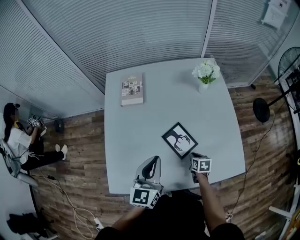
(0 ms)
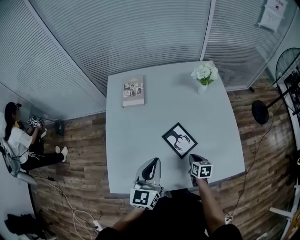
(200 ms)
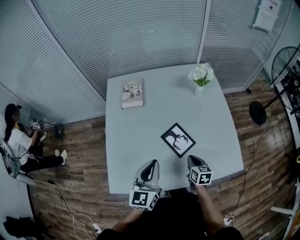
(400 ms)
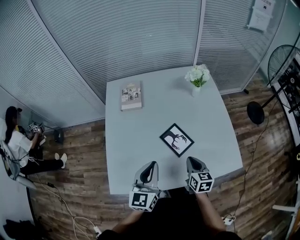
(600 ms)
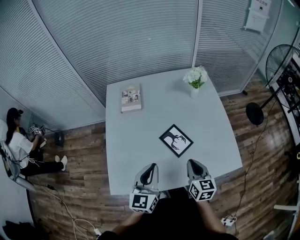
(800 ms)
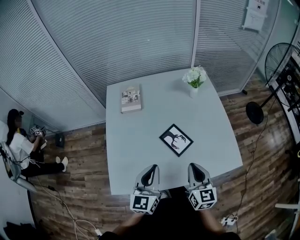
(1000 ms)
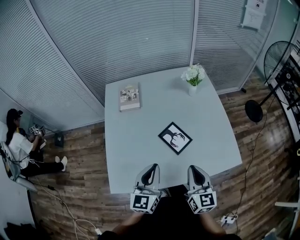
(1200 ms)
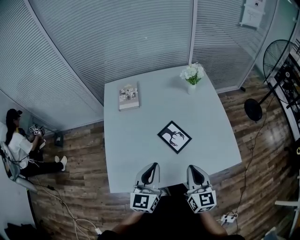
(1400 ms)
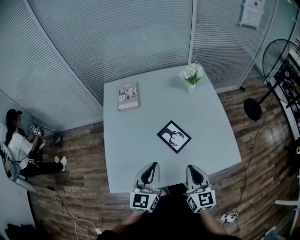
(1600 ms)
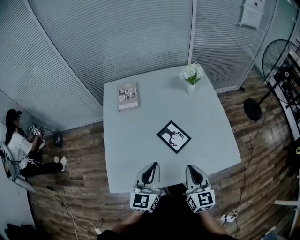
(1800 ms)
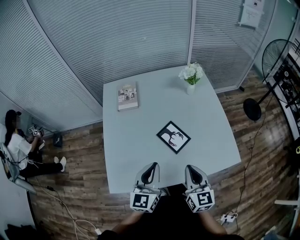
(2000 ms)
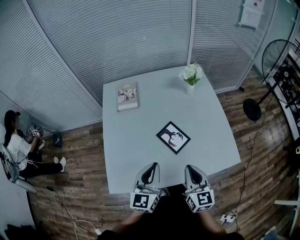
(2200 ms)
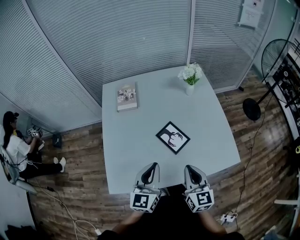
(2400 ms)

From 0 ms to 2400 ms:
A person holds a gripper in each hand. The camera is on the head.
From 0 ms to 1200 ms: The right gripper heads upward and backward, covering roughly 30 cm, and tilts its fingers some 40 degrees upward. The left gripper is displaced backward by roughly 10 cm.
From 1200 ms to 2400 ms: Both grippers stay about where they are.

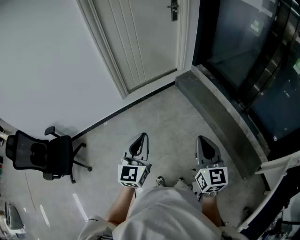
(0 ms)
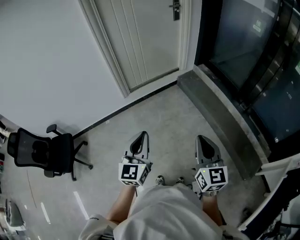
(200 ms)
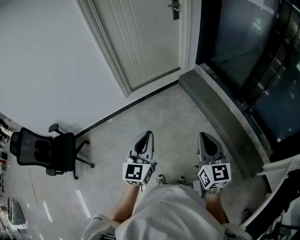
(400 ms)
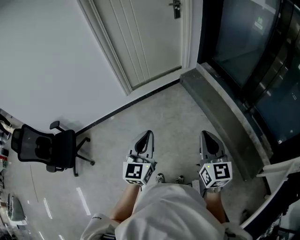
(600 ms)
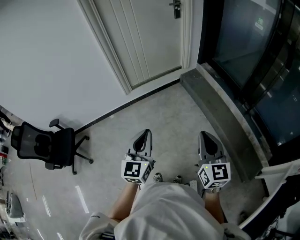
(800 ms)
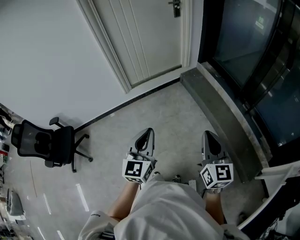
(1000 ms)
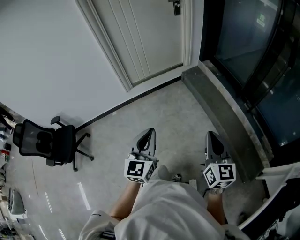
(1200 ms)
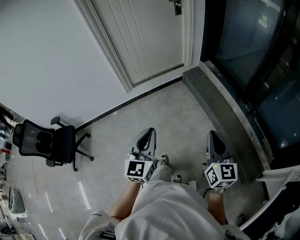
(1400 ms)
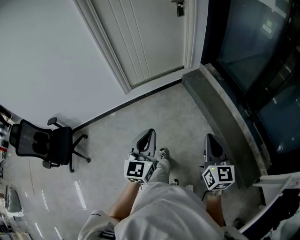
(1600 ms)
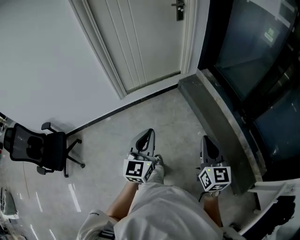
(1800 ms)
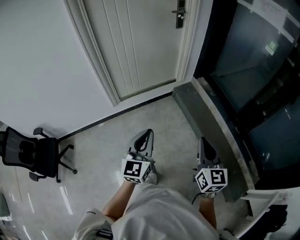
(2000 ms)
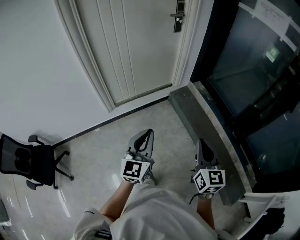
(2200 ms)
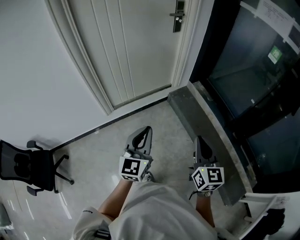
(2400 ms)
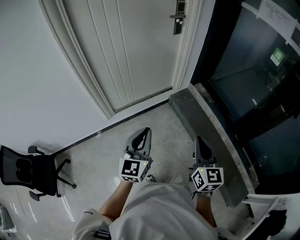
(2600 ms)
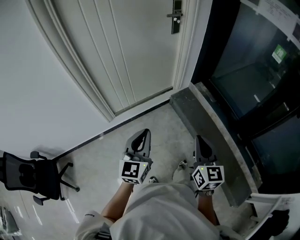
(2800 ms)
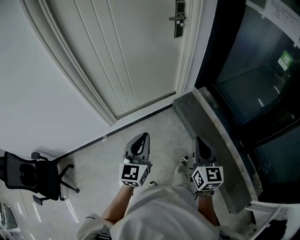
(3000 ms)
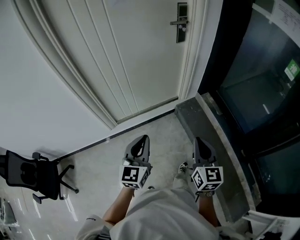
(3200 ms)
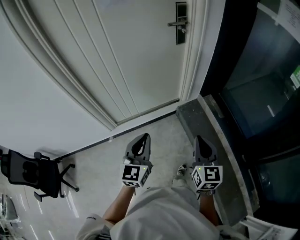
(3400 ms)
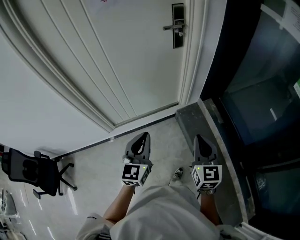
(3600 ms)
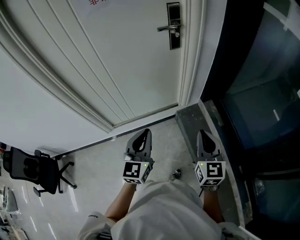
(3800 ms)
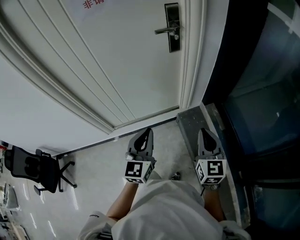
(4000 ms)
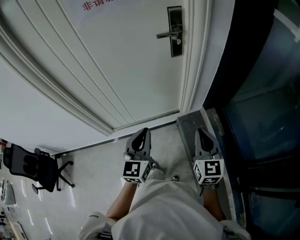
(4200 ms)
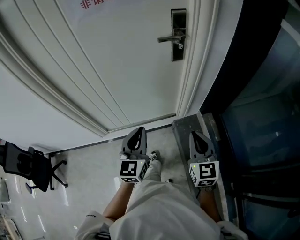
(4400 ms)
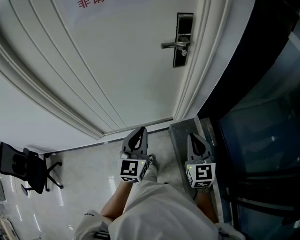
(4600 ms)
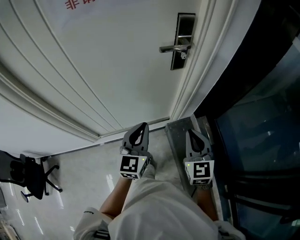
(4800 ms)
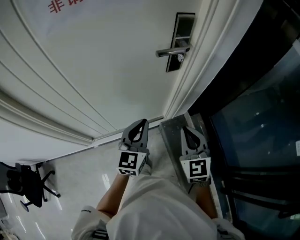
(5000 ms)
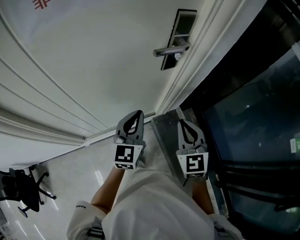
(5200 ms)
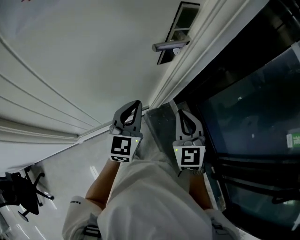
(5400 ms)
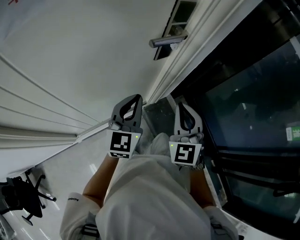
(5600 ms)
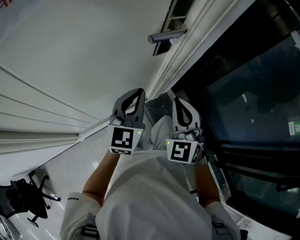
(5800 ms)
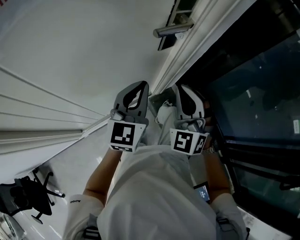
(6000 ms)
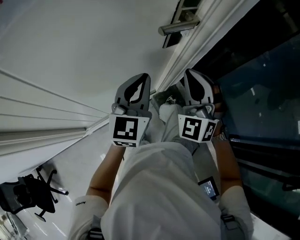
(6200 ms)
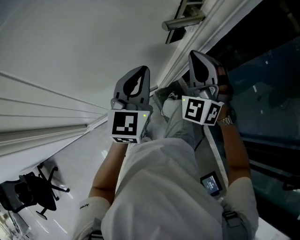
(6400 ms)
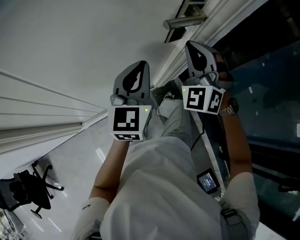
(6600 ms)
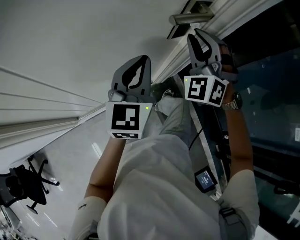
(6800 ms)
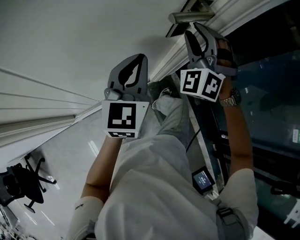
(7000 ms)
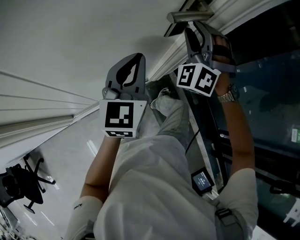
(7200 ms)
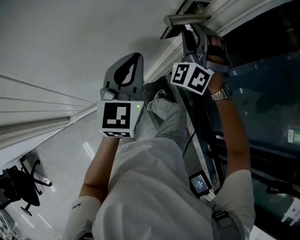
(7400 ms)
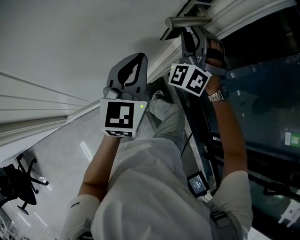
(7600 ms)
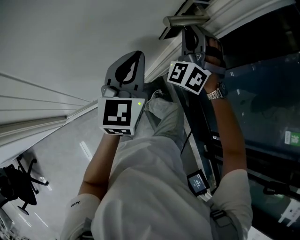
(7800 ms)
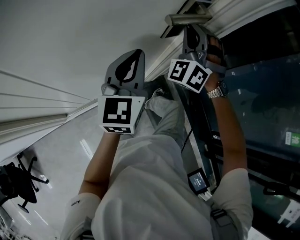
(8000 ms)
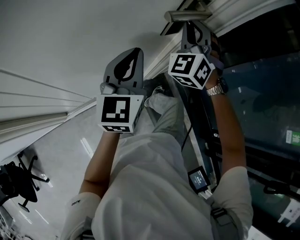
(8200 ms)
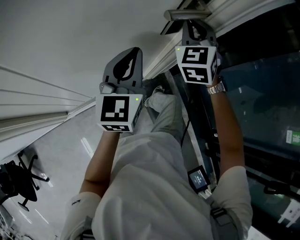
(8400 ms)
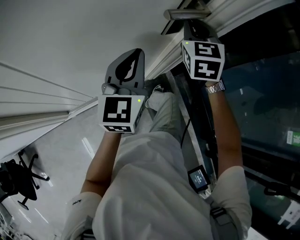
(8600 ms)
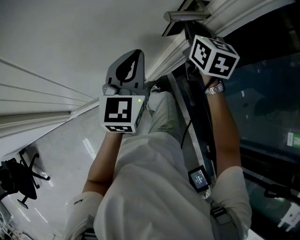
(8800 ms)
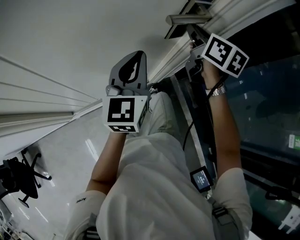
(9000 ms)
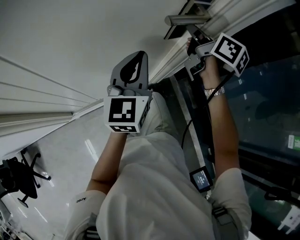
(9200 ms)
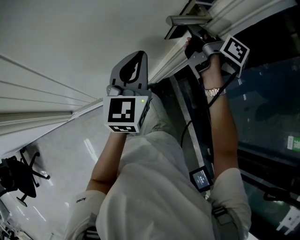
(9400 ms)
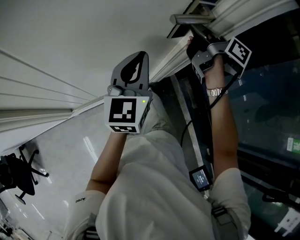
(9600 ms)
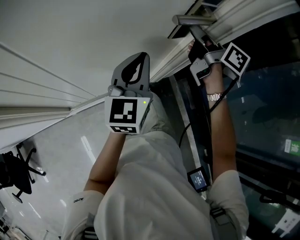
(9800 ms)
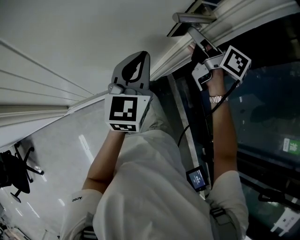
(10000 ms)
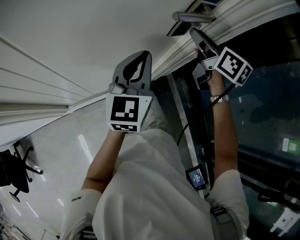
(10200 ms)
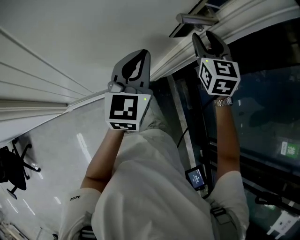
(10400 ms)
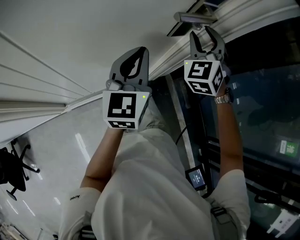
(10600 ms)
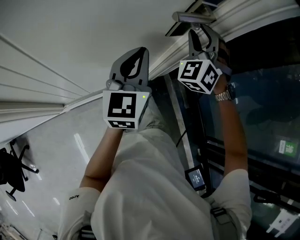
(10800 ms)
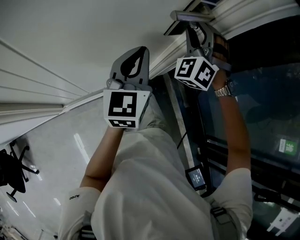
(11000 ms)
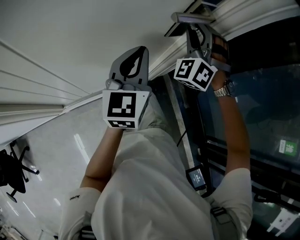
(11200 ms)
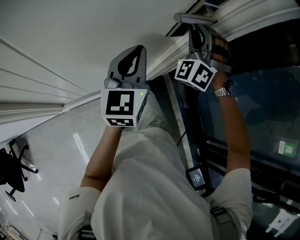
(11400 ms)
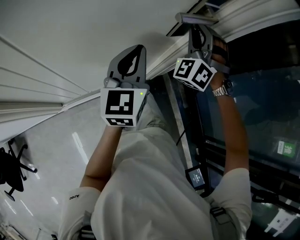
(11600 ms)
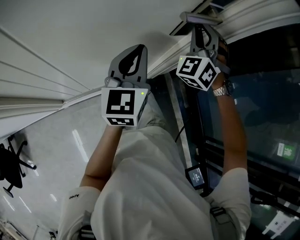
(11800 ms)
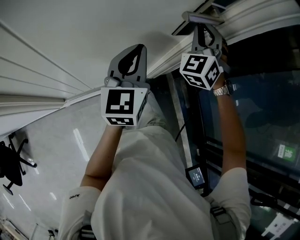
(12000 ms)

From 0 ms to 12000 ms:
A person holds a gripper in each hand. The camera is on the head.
From 0 ms to 1600 ms: The grippers both shift to the right and forward by approximately 15 cm.
From 1600 ms to 3000 ms: Both grippers move forward, about 40 cm.
From 3000 ms to 4400 ms: The two grippers go roughly 35 cm forward and to the right. The right gripper rotates some 20 degrees.
From 4400 ms to 6000 ms: The left gripper travels forward by some 25 cm, and turns by about 20 degrees. The right gripper goes approximately 25 cm forward and to the left, and rolls counterclockwise, seen from behind, by about 50 degrees.
From 6000 ms to 7600 ms: The right gripper is displaced forward by roughly 20 cm, changes its angle by approximately 30 degrees, and opens, while the left gripper is displaced forward by some 5 cm.
From 7600 ms to 9000 ms: The right gripper twists about 100 degrees clockwise, seen from behind, and closes up.
From 9000 ms to 10400 ms: The right gripper twists roughly 40 degrees counterclockwise, seen from behind, and opens its fingers.
From 10400 ms to 12000 ms: The right gripper rotates about 40 degrees, and closes its fingers.

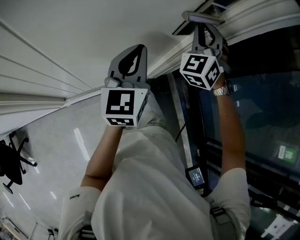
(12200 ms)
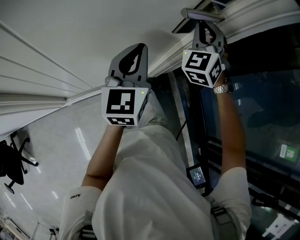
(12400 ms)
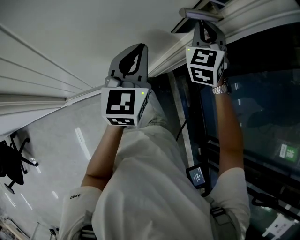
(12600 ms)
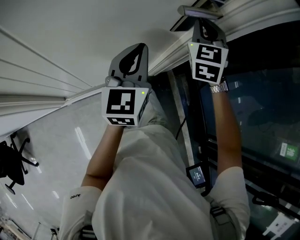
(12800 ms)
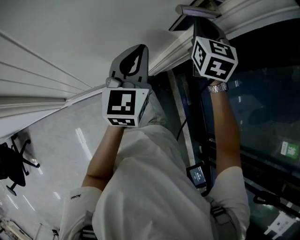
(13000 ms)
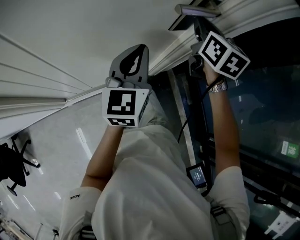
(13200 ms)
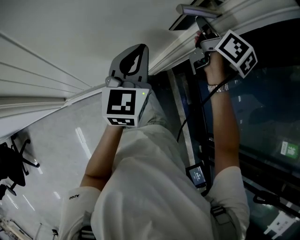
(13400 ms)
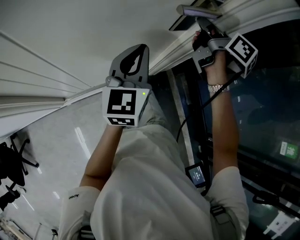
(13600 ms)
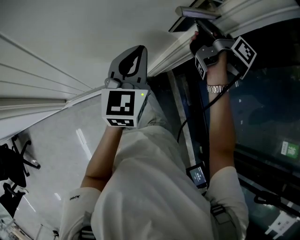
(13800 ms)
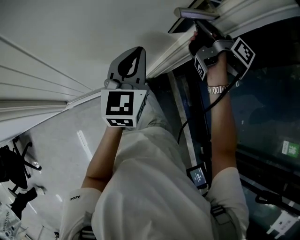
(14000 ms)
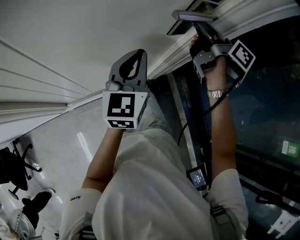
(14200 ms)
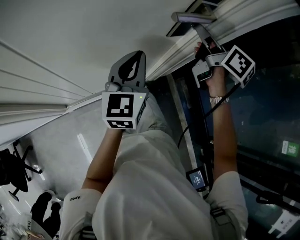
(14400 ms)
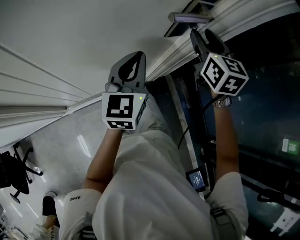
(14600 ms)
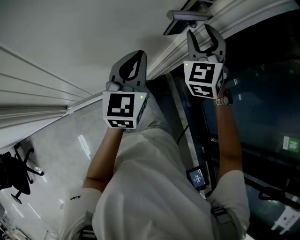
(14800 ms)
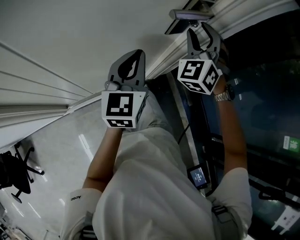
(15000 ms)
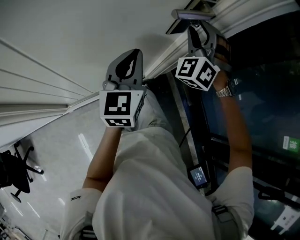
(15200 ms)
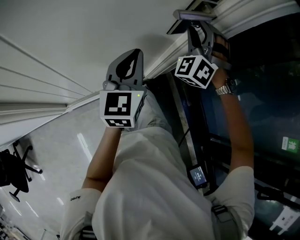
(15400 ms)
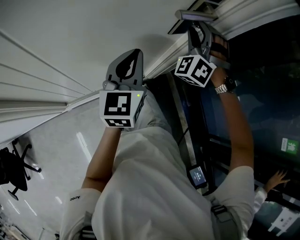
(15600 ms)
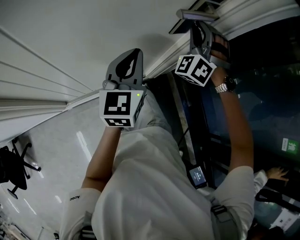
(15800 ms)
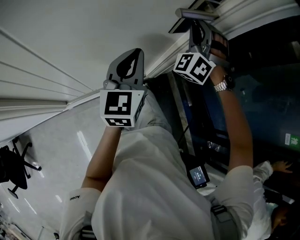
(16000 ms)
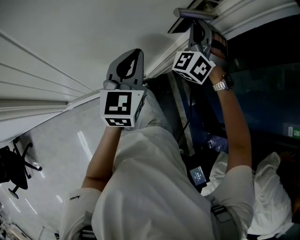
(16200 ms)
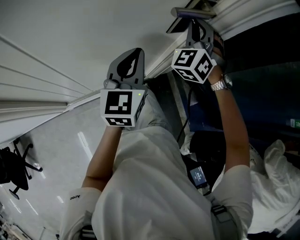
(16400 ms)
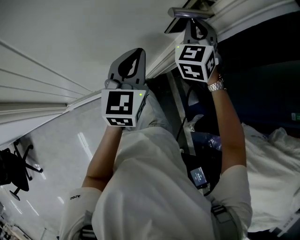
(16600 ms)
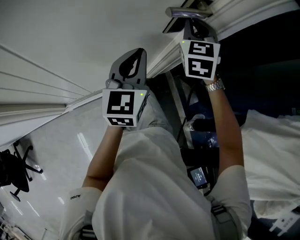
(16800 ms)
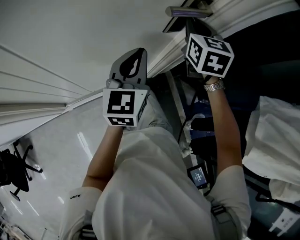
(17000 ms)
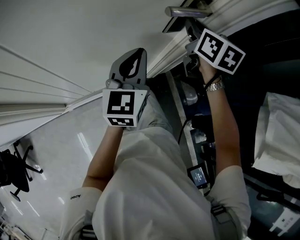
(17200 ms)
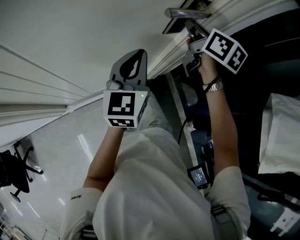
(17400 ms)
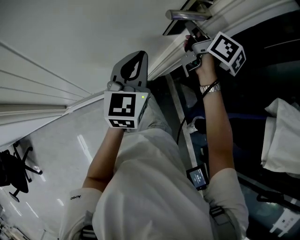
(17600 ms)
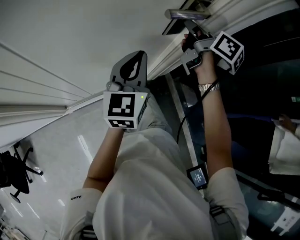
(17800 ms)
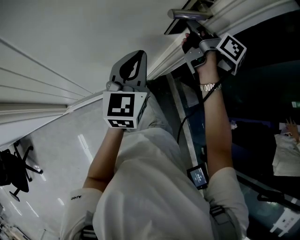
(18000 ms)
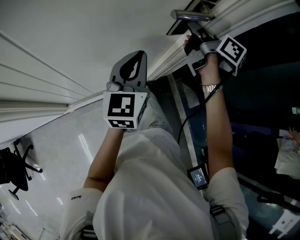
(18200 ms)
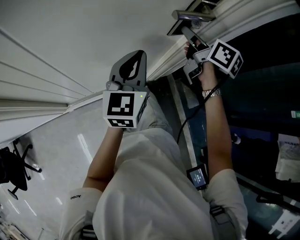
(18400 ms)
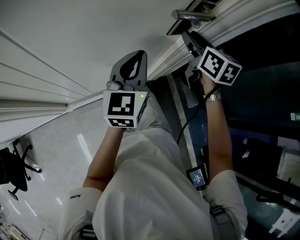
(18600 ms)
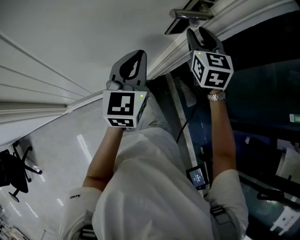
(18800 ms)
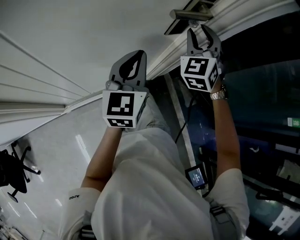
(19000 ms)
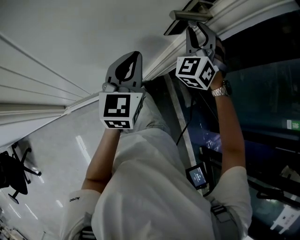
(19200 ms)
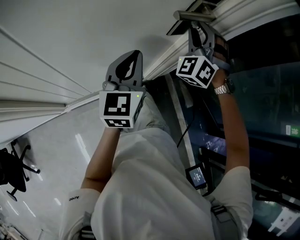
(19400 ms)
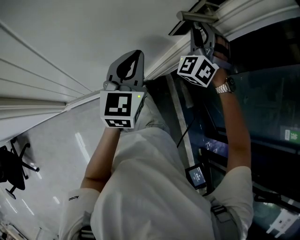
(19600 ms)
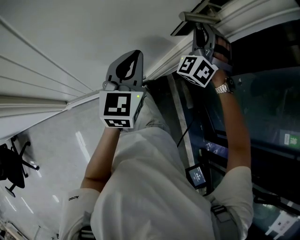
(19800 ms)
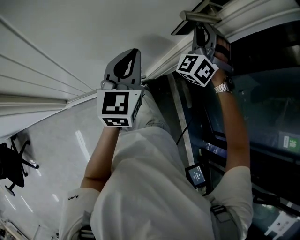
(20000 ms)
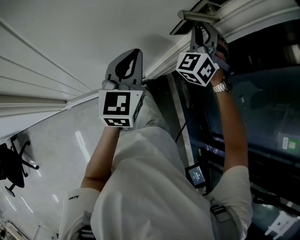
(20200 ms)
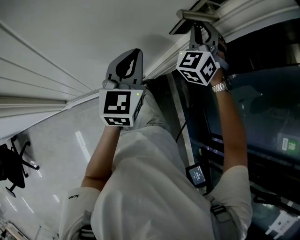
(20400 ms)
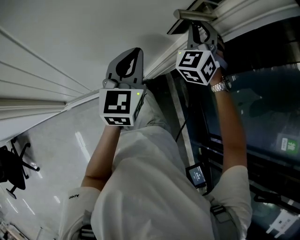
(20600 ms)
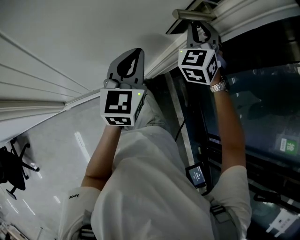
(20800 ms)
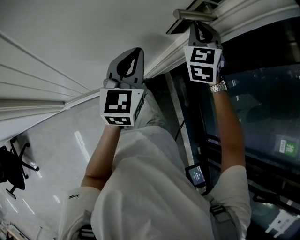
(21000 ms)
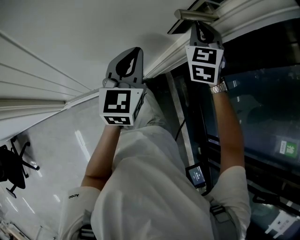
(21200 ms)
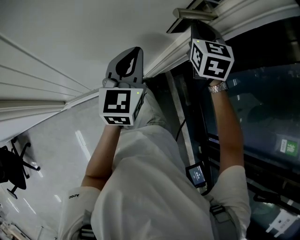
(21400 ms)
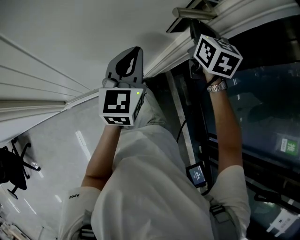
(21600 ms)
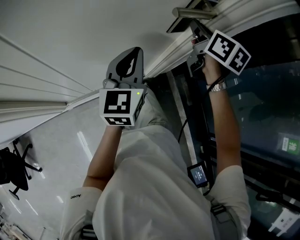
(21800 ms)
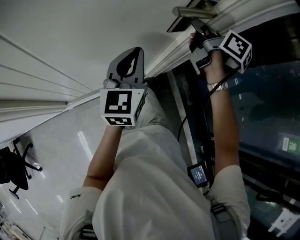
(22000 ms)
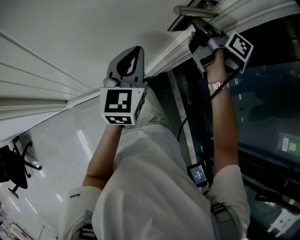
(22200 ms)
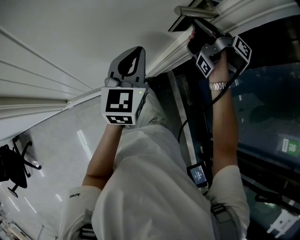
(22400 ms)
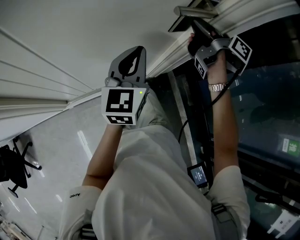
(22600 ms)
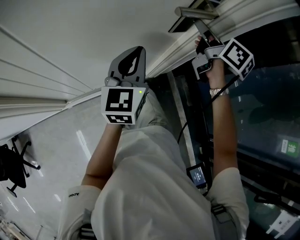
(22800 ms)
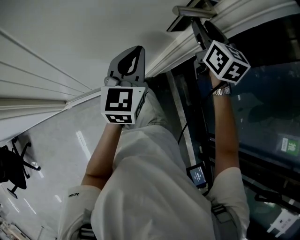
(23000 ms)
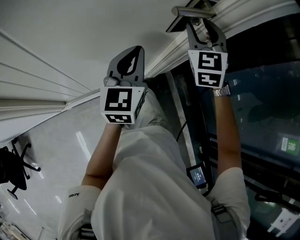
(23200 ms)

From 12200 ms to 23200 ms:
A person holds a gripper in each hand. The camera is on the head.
From 12200 ms to 13800 ms: The right gripper rolls clockwise, seen from behind, by roughly 120 degrees.
From 13800 ms to 15400 ms: The right gripper rolls counterclockwise, seen from behind, by about 140 degrees, and opens.
From 15400 ms to 17000 ms: The right gripper twists approximately 70 degrees clockwise, seen from behind, and closes up.
From 17000 ms to 18400 ms: The right gripper rolls clockwise, seen from behind, by some 40 degrees.
From 18400 ms to 20000 ms: The right gripper twists roughly 110 degrees counterclockwise, seen from behind.
From 20000 ms to 21600 ms: The right gripper rotates around the line of its fingers by about 70 degrees, clockwise from behind.
From 21600 ms to 23200 ms: The right gripper swivels approximately 30 degrees, and opens up.
